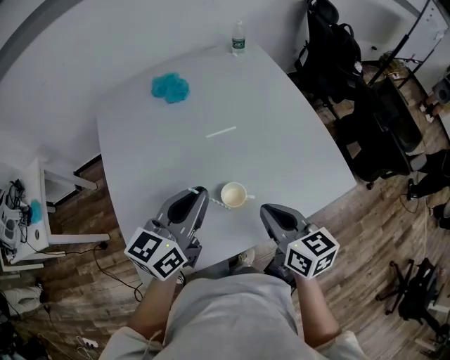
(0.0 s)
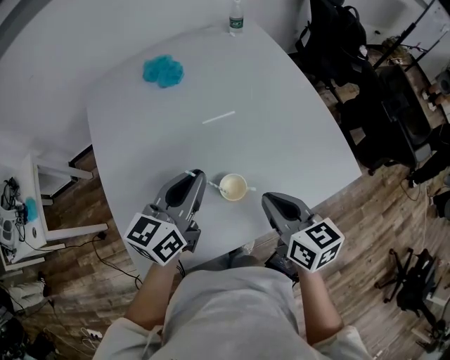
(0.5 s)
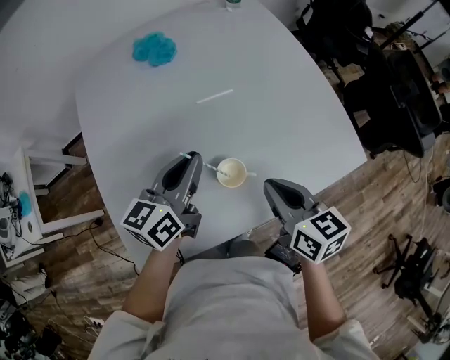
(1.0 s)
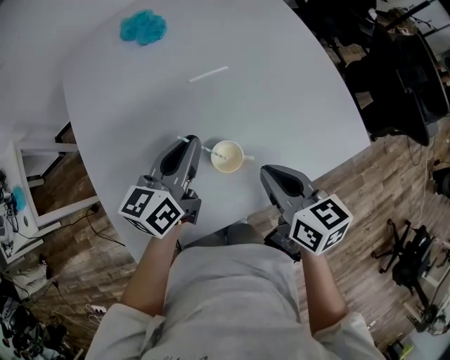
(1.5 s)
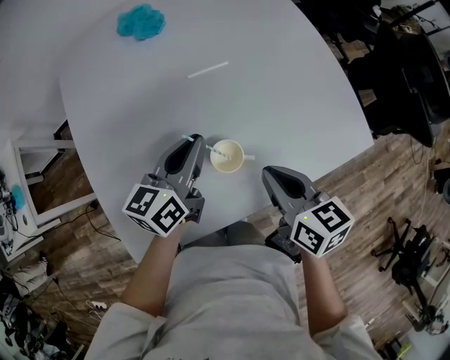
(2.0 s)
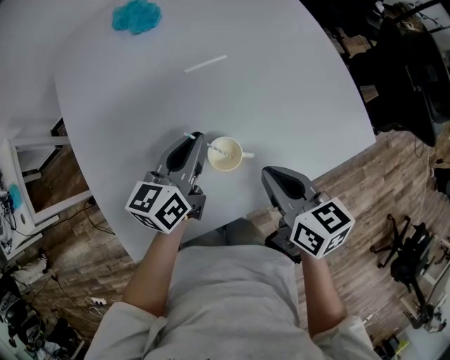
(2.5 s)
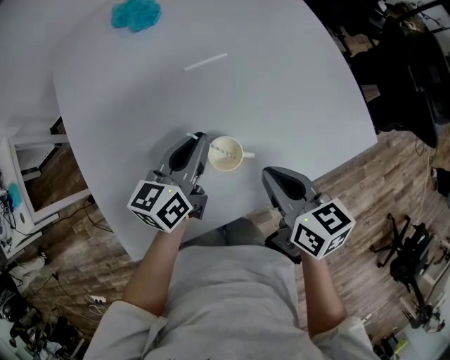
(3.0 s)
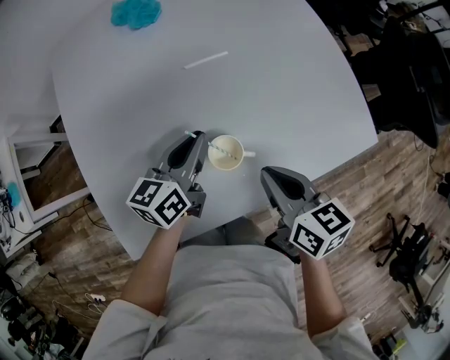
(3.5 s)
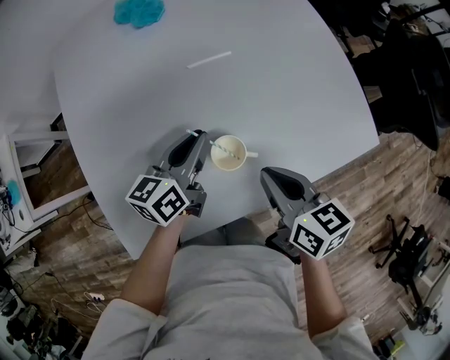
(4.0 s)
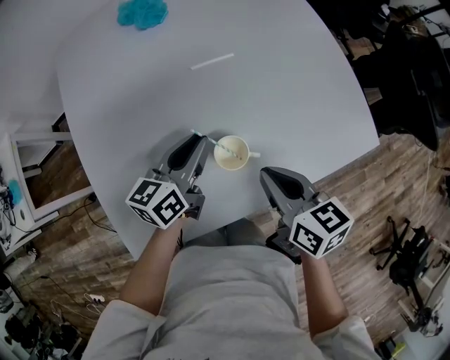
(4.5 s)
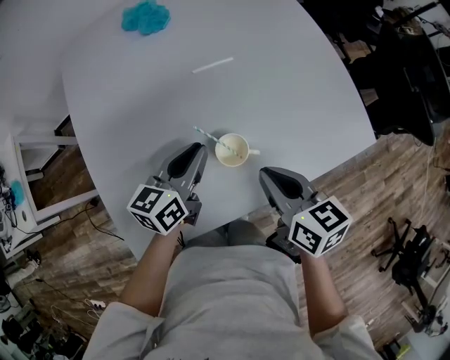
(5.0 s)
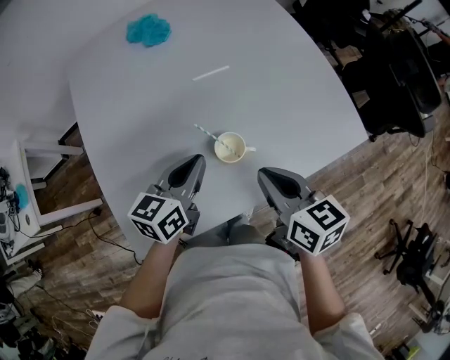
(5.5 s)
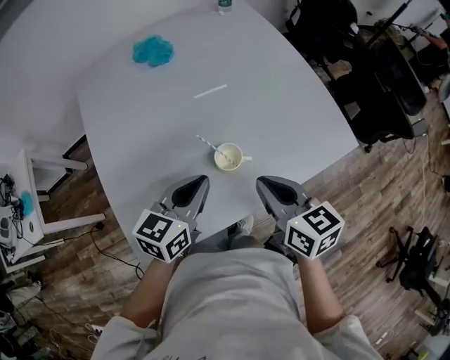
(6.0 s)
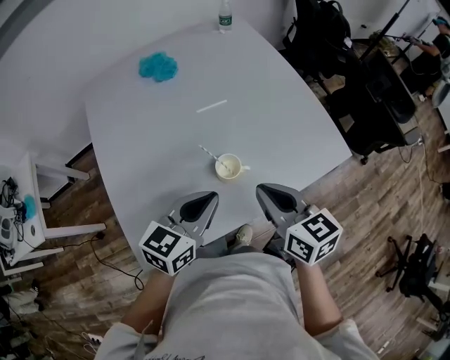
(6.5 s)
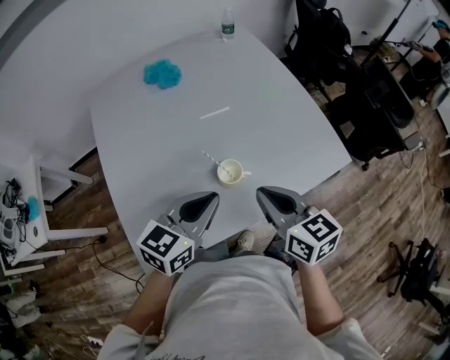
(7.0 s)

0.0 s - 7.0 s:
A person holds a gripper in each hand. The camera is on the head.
0.0 s - 2.0 s: The left gripper travels downward and forward by roughly 15 cm. The right gripper goes some 5 cm downward.
2.0 s - 5.0 s: The grippers stay close to where they were, moving slightly.
5.0 s - 7.0 s: The right gripper heads upward, covering roughly 10 cm, while the left gripper goes about 15 cm upward and backward, and turns by about 20 degrees.

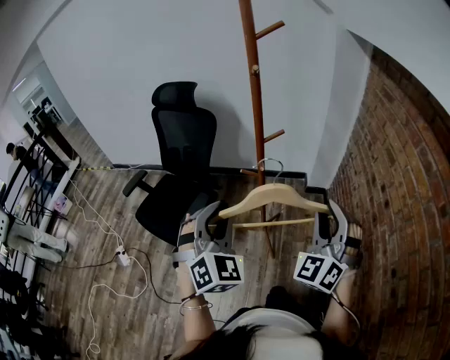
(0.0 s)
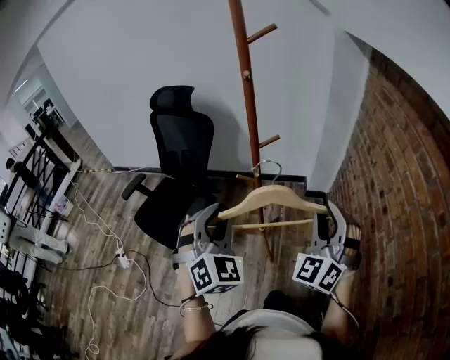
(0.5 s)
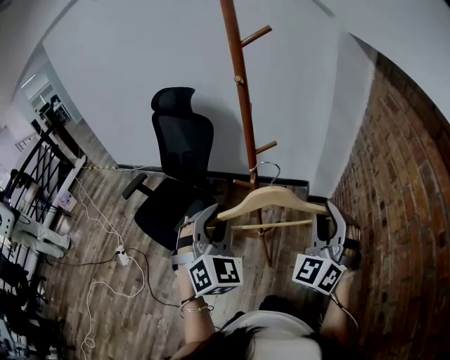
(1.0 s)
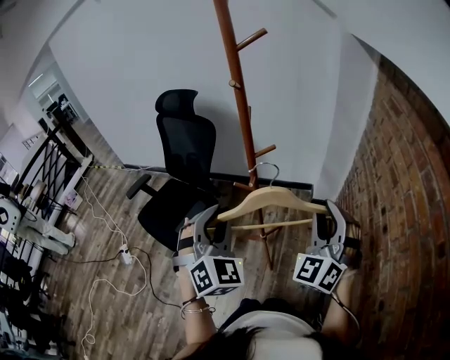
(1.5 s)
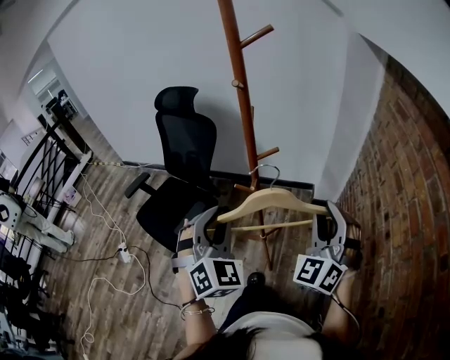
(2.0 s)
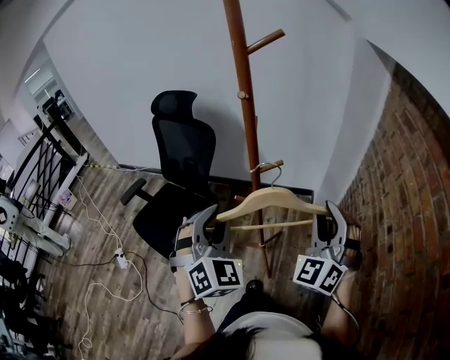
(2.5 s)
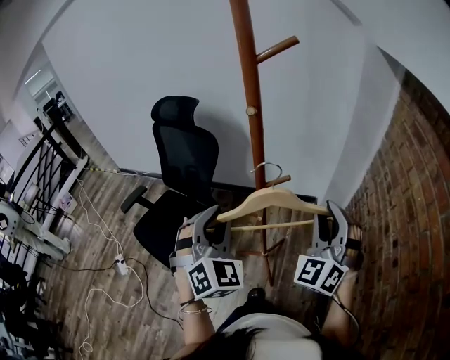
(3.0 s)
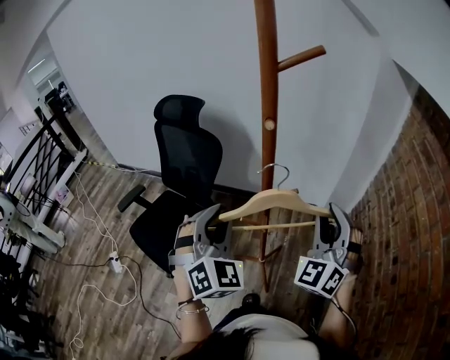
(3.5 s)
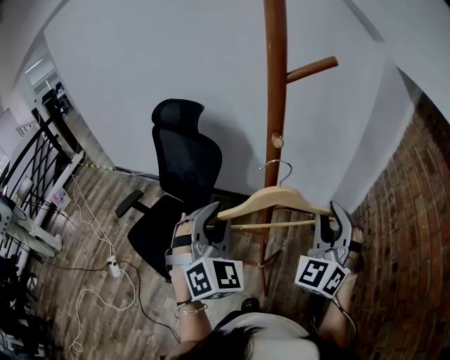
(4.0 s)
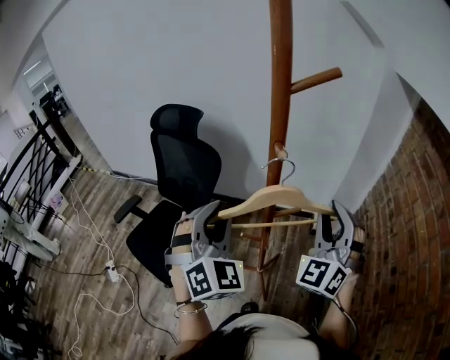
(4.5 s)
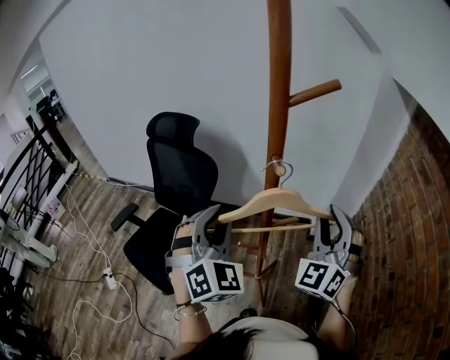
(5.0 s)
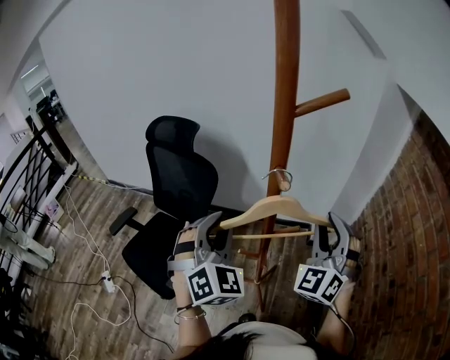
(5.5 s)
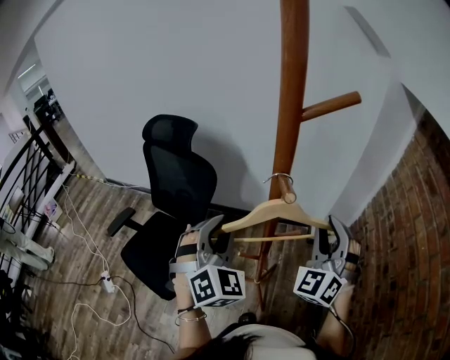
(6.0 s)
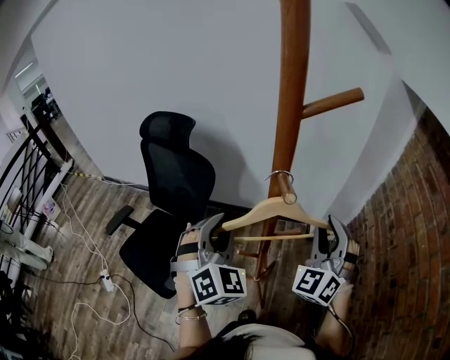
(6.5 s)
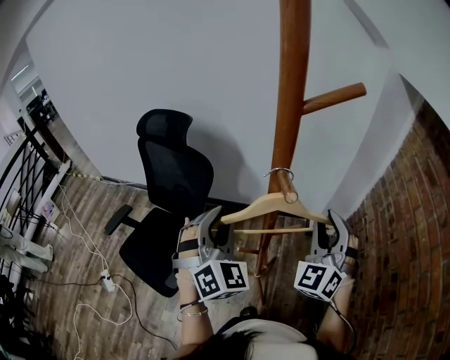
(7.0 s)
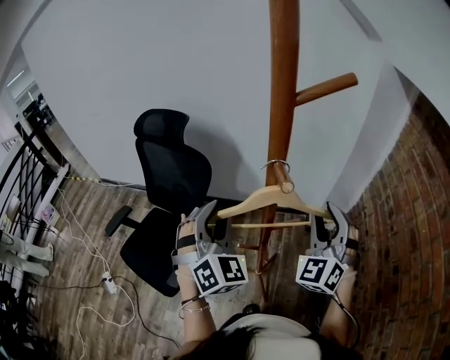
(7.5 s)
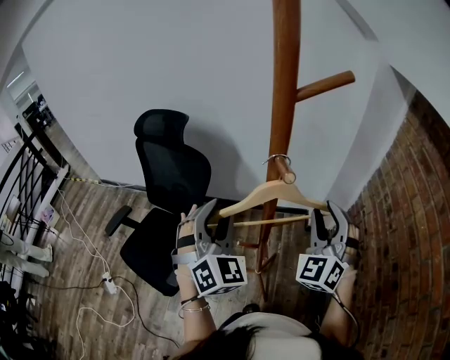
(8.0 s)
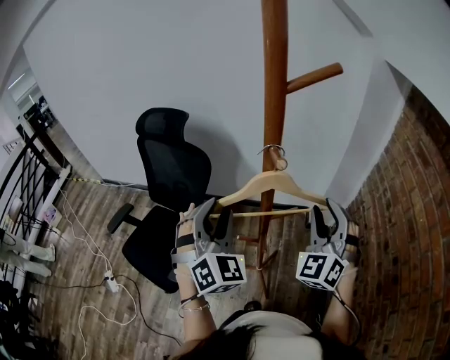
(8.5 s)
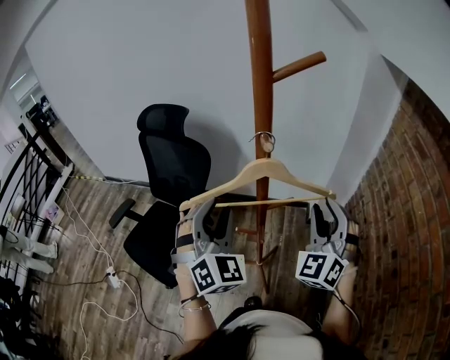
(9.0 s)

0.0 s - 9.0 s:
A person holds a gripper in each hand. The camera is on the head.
0.0 s - 2.0 s: The left gripper travels forward and to the right by approximately 10 cm; the right gripper is displaced forward by approximately 10 cm.
2.0 s - 4.5 s: The grippers both shift forward by approximately 20 cm.
4.5 s - 7.0 s: The left gripper travels forward by about 5 cm. Meanwhile the right gripper ends up about 5 cm from where it was.
7.0 s - 9.0 s: The left gripper travels backward by approximately 5 cm. The right gripper moves some 5 cm.

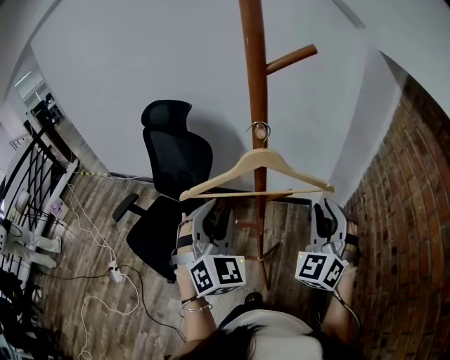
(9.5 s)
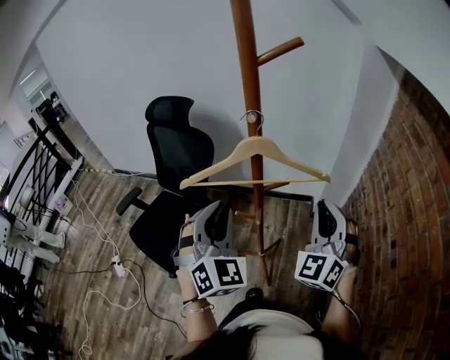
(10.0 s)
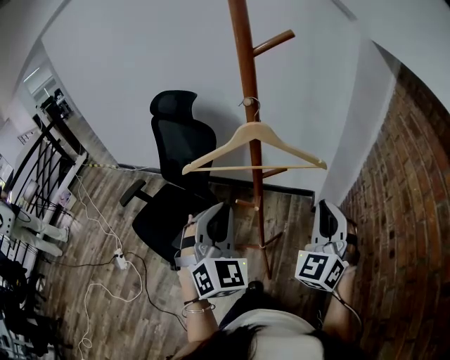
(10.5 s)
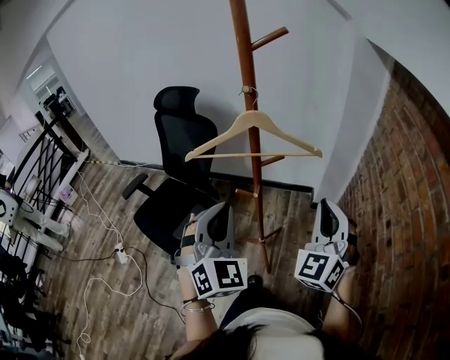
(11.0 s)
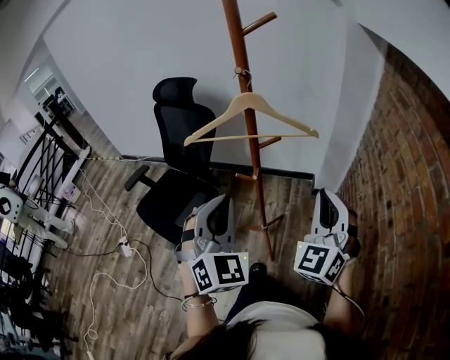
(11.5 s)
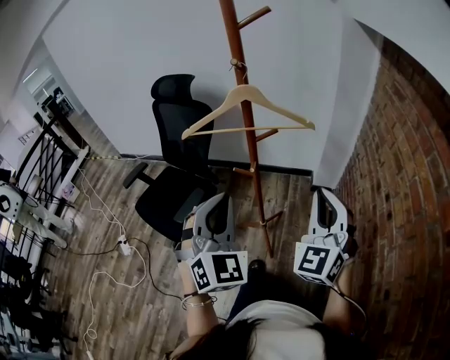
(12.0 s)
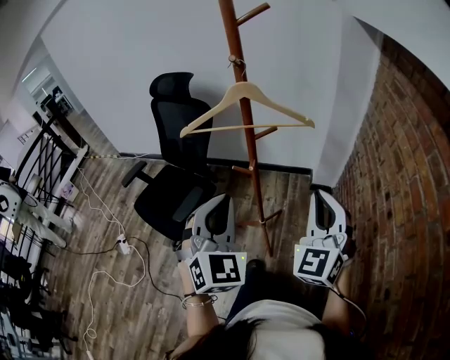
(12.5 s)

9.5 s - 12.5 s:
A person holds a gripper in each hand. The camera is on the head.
9.5 s - 11.0 s: The two grippers go approximately 15 cm backward. The left gripper closes up.
11.0 s - 12.5 s: Both grippers move backward, roughly 5 cm.

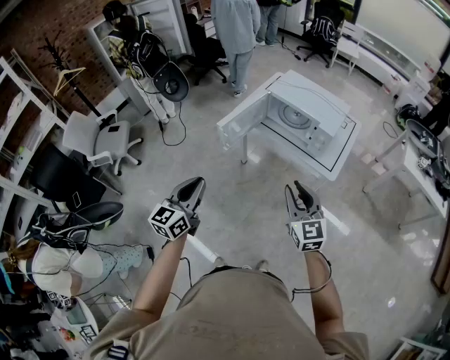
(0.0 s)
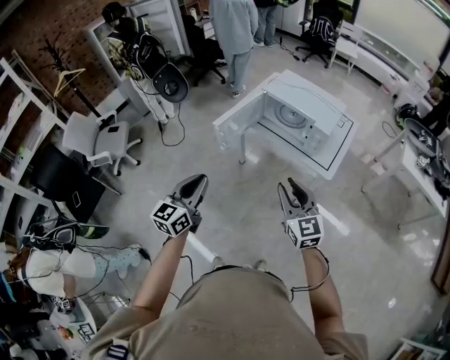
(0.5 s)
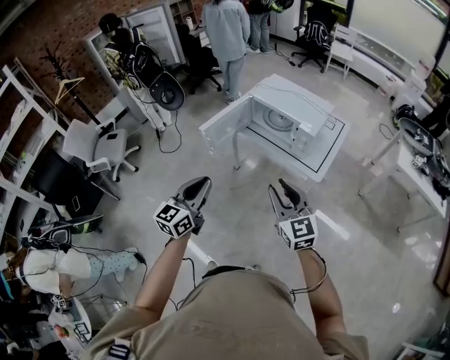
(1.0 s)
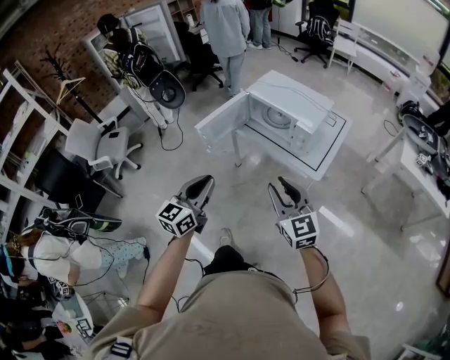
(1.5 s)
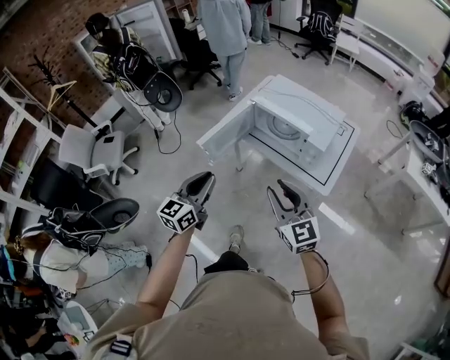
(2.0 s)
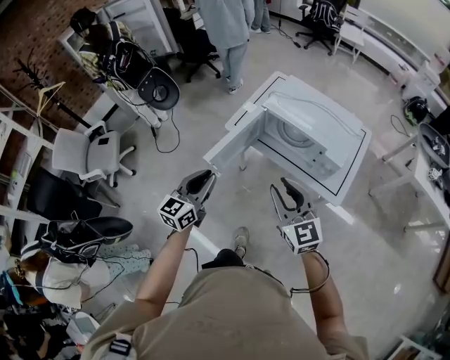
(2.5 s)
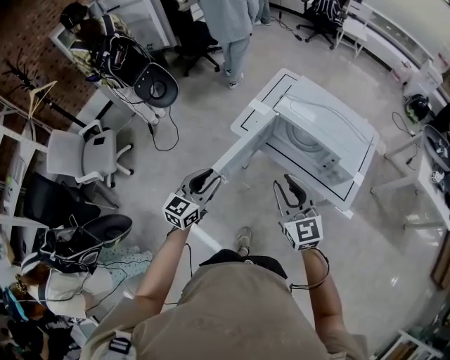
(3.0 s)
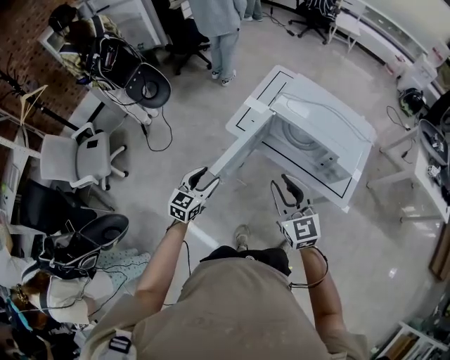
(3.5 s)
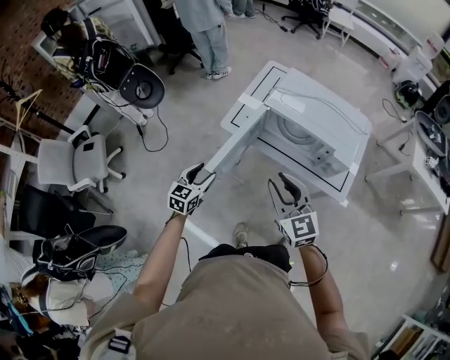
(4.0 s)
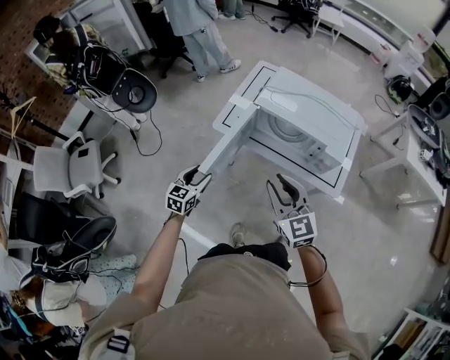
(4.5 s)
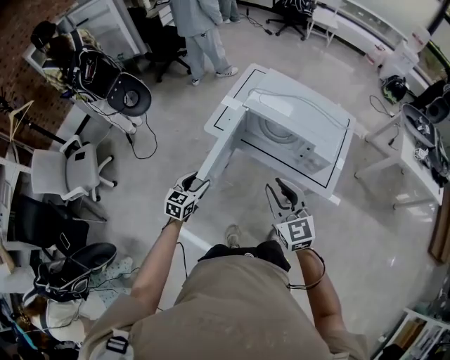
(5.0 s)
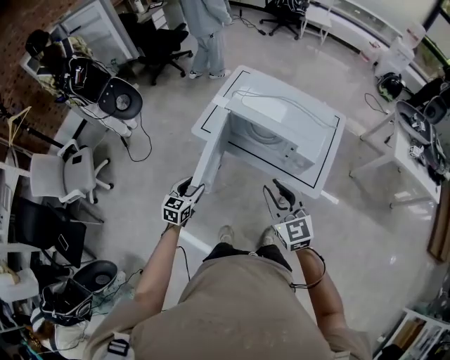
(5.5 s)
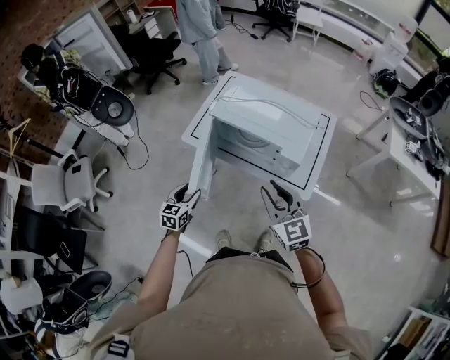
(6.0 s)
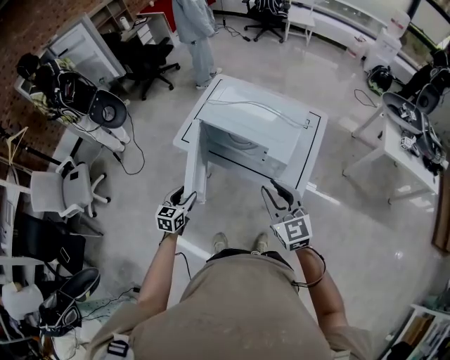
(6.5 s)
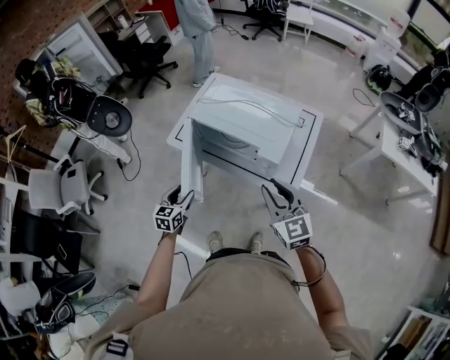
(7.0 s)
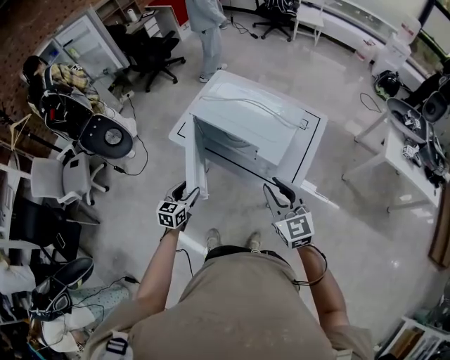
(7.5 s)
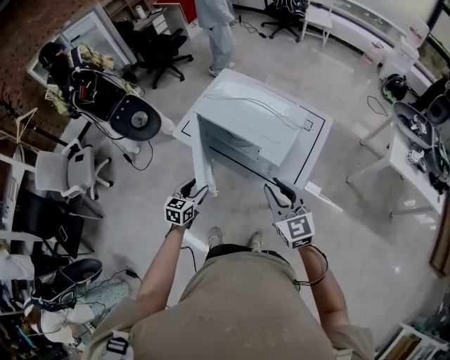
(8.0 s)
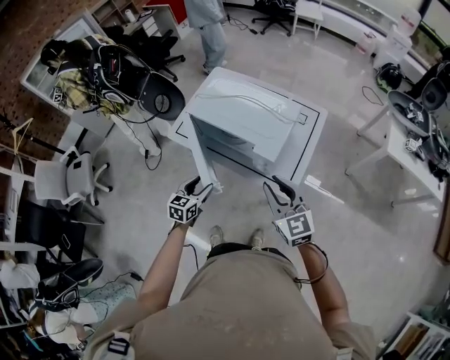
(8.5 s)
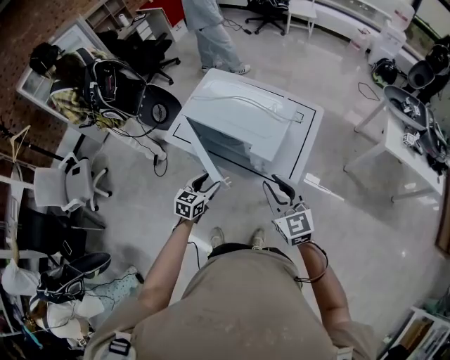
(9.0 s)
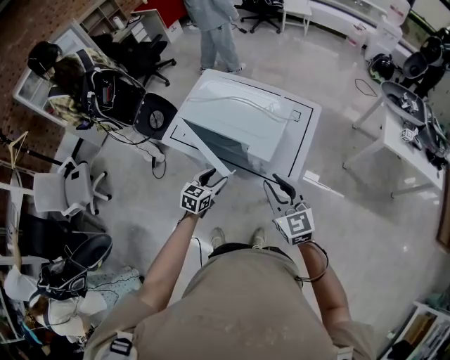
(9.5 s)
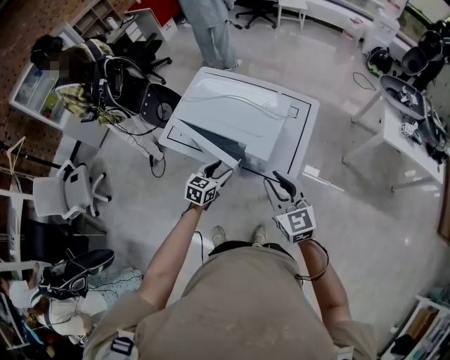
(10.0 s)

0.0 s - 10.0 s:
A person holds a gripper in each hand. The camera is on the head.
0.0 s - 2.0 s: The right gripper heads forward, covering roughly 10 cm, while the left gripper is displaced forward and to the right by about 20 cm.
2.0 s - 4.0 s: The left gripper shifts approximately 35 cm forward, downward and to the left, changes its angle by approximately 20 degrees, and opens, while the right gripper travels forward and to the left by approximately 25 cm.
4.0 s - 6.0 s: Both grippers travel together to the right, approximately 15 cm.
6.0 s - 8.0 s: The grippers both shift to the right by approximately 15 cm.
8.0 s - 10.0 s: The left gripper is displaced to the right and forward by roughly 15 cm.
